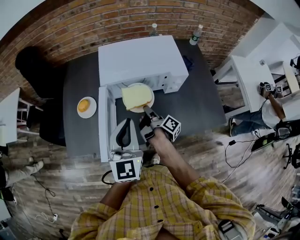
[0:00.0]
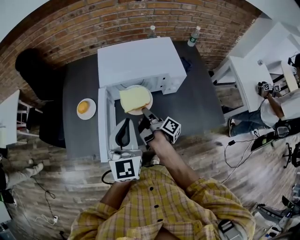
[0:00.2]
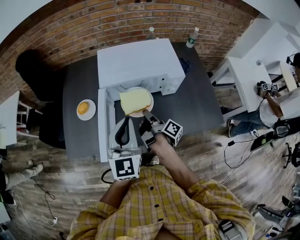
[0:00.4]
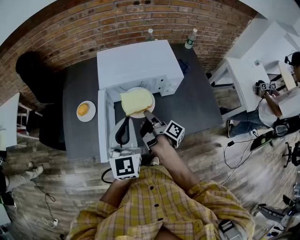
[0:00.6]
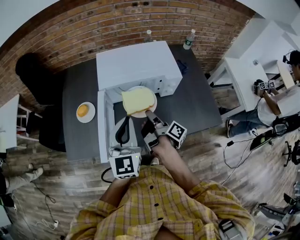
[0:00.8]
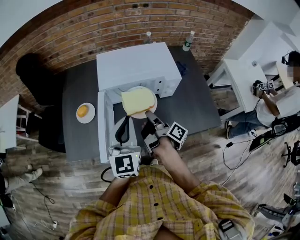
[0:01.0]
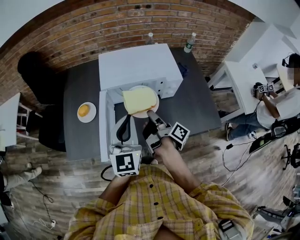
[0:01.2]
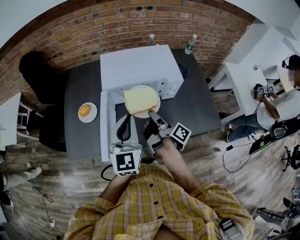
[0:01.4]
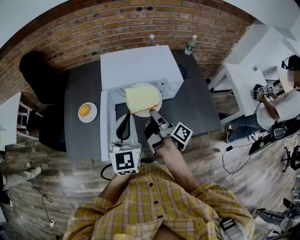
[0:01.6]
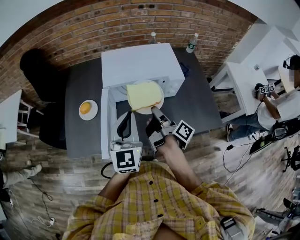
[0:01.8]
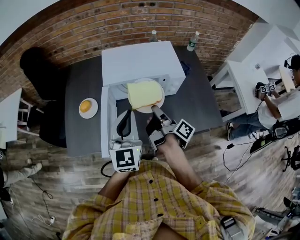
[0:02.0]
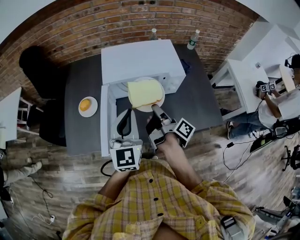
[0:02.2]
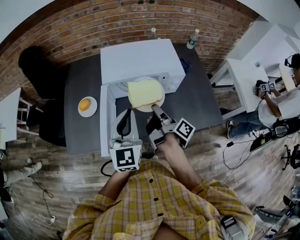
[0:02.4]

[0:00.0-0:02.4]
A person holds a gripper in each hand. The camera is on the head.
0.0 to 1.2 s: The right gripper heads upward, covering about 10 cm.
1.2 to 2.4 s: The grippers make only small movements.

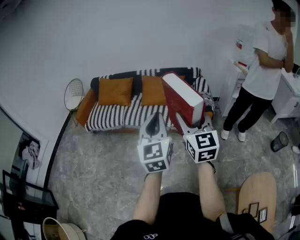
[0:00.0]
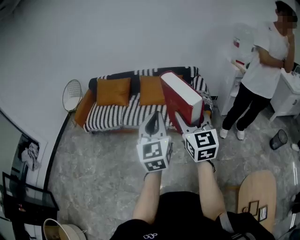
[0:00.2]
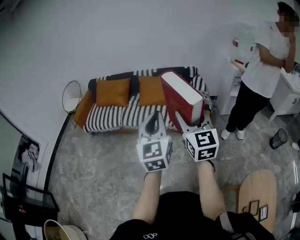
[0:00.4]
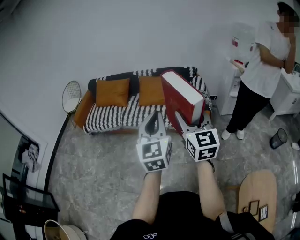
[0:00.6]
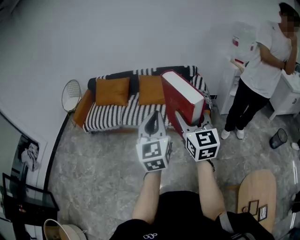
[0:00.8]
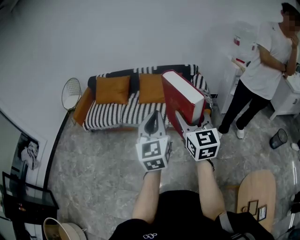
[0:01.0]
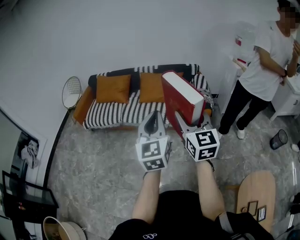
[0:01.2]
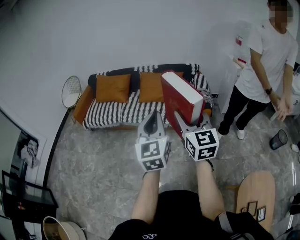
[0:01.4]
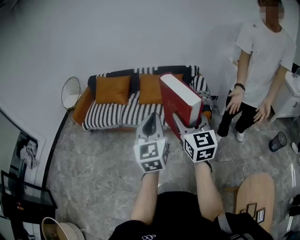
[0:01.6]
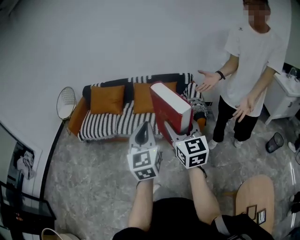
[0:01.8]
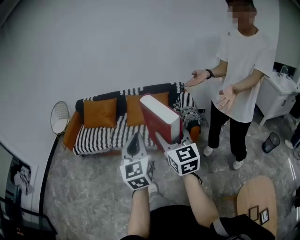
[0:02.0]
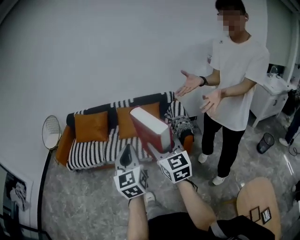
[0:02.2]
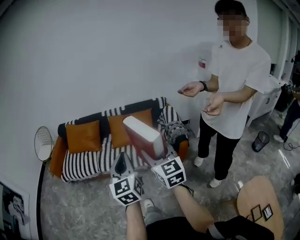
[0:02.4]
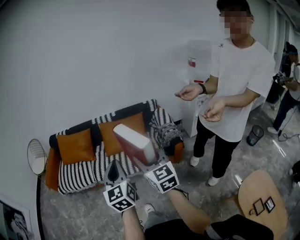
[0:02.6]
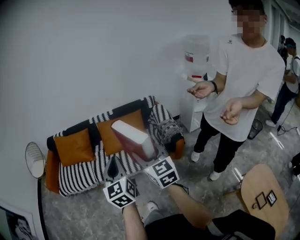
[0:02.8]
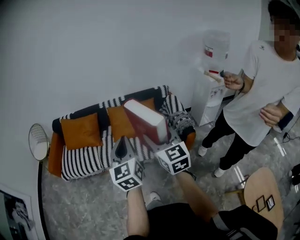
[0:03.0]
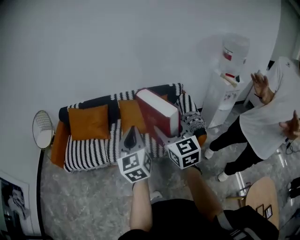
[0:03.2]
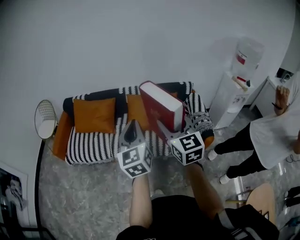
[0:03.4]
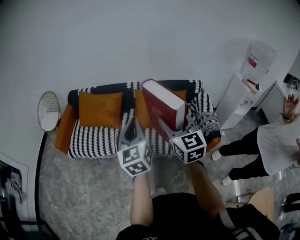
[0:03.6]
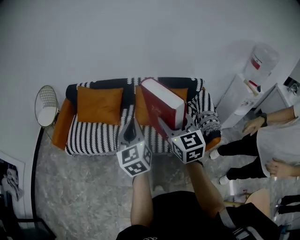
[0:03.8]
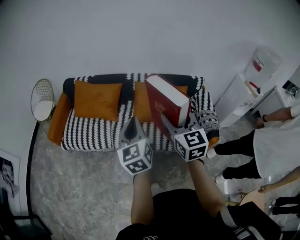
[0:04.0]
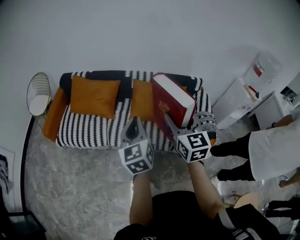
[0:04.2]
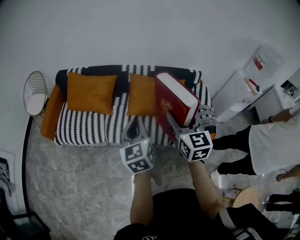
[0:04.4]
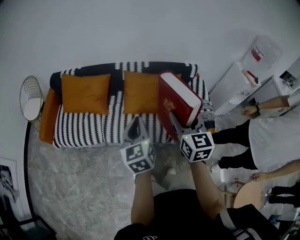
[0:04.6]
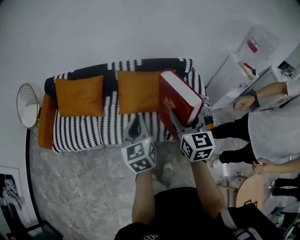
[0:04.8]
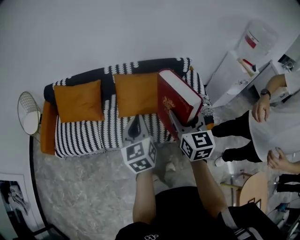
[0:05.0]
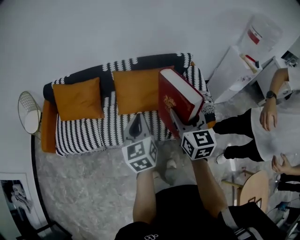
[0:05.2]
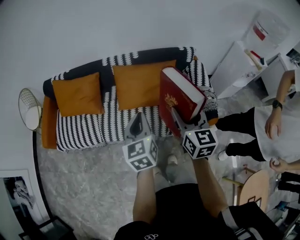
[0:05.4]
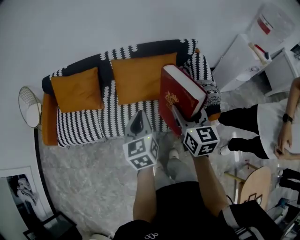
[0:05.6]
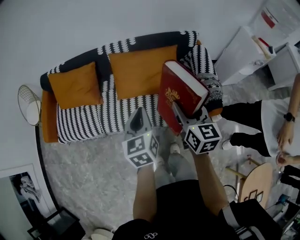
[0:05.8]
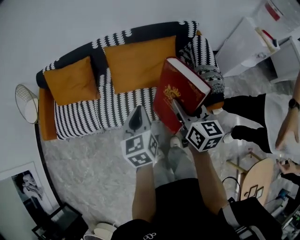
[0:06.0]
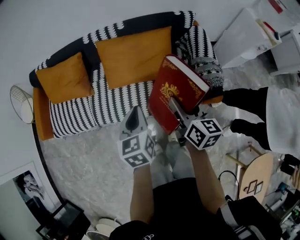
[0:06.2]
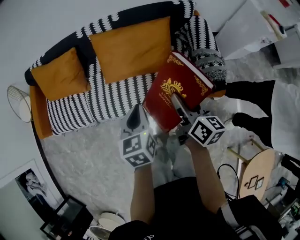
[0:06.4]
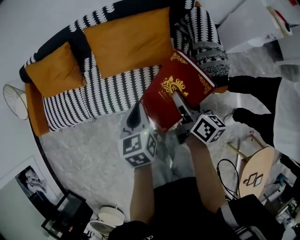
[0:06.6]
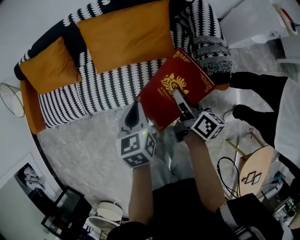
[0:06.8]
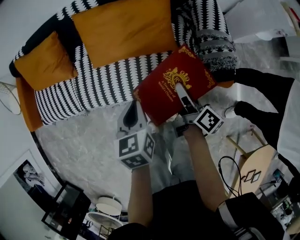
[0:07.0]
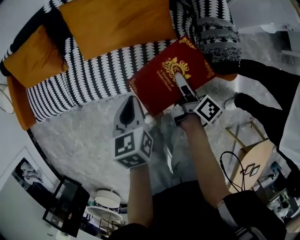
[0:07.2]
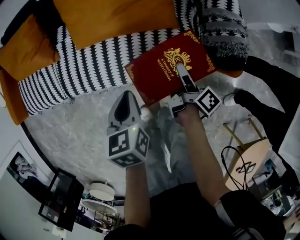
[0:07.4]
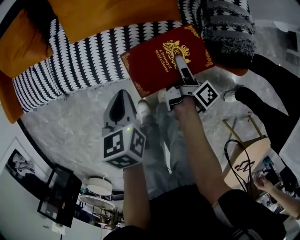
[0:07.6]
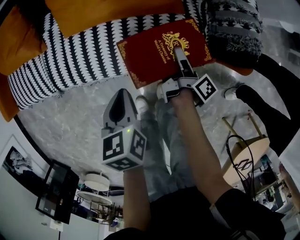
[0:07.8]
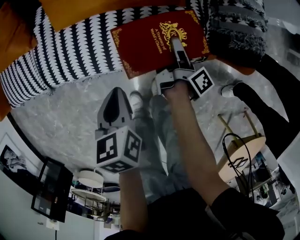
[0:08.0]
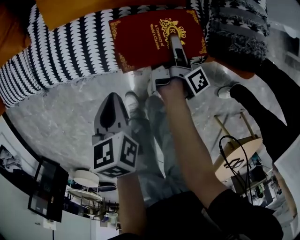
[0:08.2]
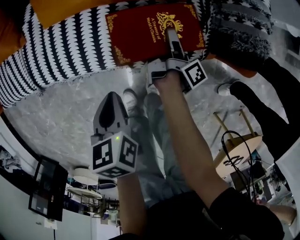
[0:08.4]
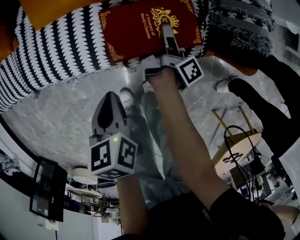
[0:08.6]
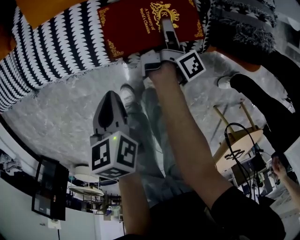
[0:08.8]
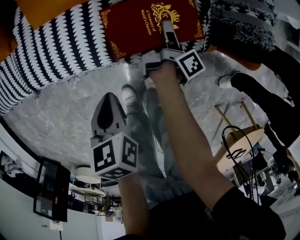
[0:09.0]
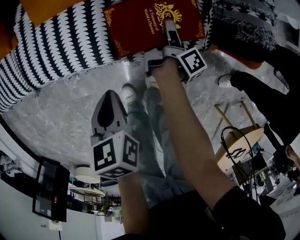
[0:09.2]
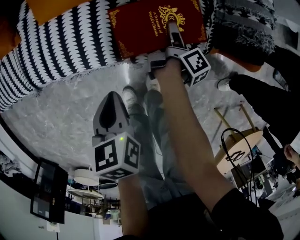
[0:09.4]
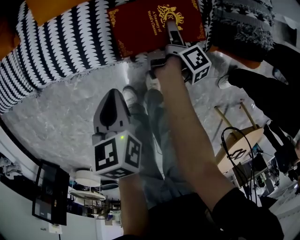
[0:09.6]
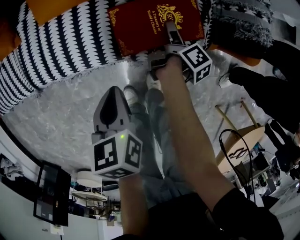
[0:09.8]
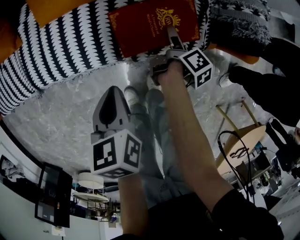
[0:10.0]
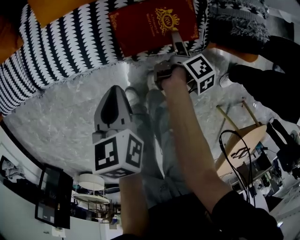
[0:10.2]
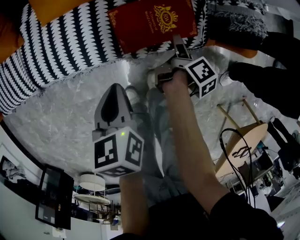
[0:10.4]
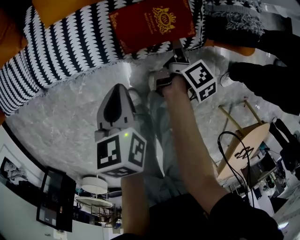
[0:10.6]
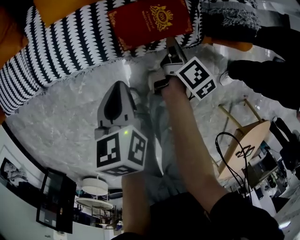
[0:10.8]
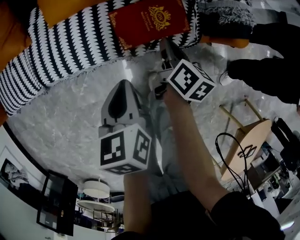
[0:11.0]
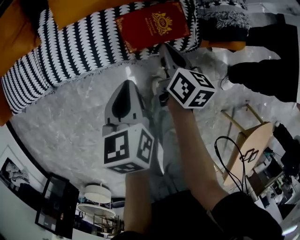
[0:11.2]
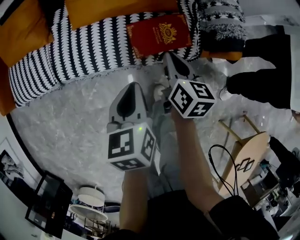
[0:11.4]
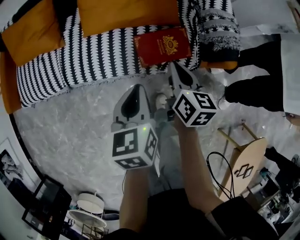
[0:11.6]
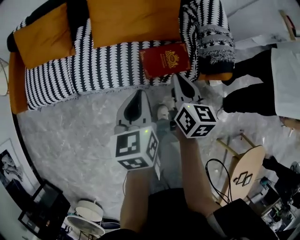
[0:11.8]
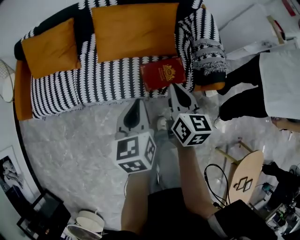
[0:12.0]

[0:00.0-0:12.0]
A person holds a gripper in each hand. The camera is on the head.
0.0 to 1.6 s: The grippers stay close to where they were, moving slightly.
1.6 to 3.0 s: The two grippers go approximately 25 cm forward.
3.0 to 4.4 s: The left gripper shifts approximately 25 cm forward, to the left and downward, while the right gripper moves forward and to the left, about 20 cm.
4.4 to 6.0 s: Both grippers move to the right, downward and forward, some 25 cm. The right gripper rotates about 30 degrees, while the left gripper changes its angle by about 20 degrees.
6.0 to 7.6 s: The two grippers go approximately 35 cm downward. The right gripper twists roughly 70 degrees clockwise, seen from behind. Meanwhile the left gripper swivels approximately 20 degrees.
7.6 to 9.0 s: The right gripper travels downward by about 10 cm. The left gripper is displaced downward and backward by some 10 cm.
9.0 to 10.4 s: The right gripper shifts approximately 5 cm backward, and turns by about 20 degrees.
10.4 to 12.0 s: The left gripper travels upward by approximately 25 cm, and turns by some 20 degrees. Meanwhile the right gripper heads upward, covering some 35 cm, rolls counterclockwise, seen from behind, by roughly 60 degrees, and closes.

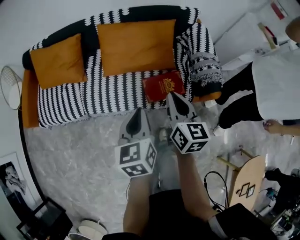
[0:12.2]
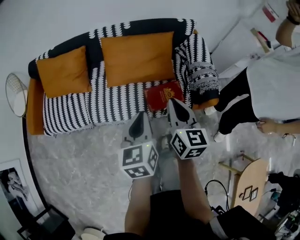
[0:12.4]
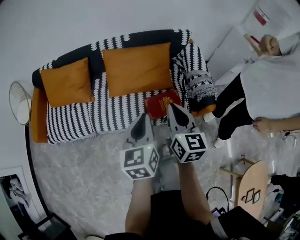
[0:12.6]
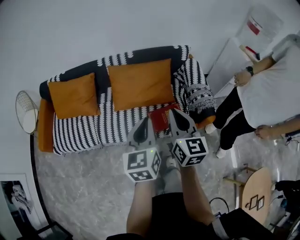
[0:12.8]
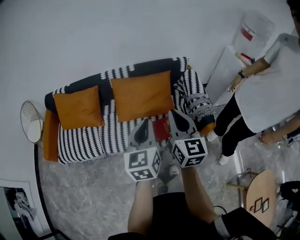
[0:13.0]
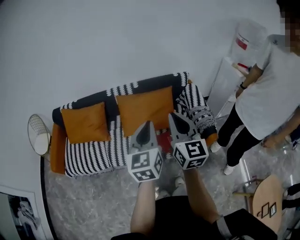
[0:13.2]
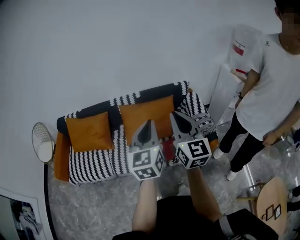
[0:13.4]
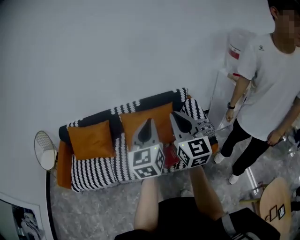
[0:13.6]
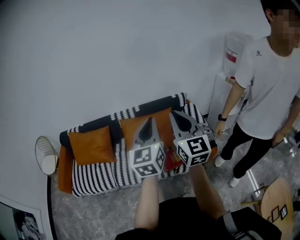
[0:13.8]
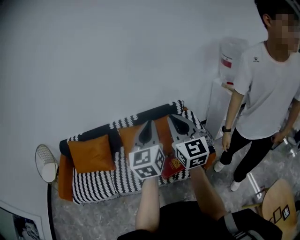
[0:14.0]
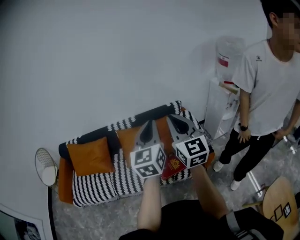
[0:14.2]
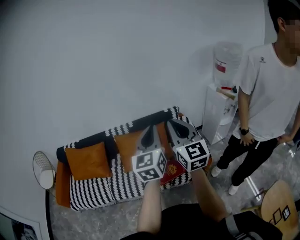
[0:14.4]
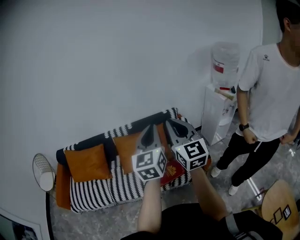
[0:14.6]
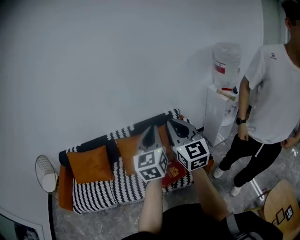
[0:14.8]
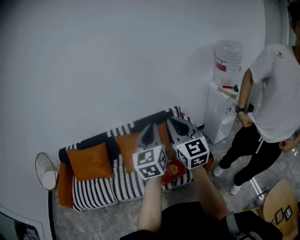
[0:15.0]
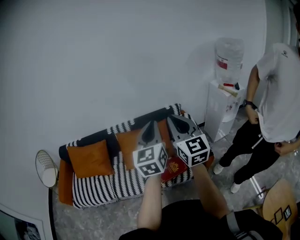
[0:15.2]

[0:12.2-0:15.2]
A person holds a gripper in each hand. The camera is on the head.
12.2 to 13.8 s: Both grippers move upward, some 35 cm. The right gripper turns by about 40 degrees, while the left gripper points its fingers roughly 30 degrees further upward.
13.8 to 15.2 s: Both grippers move to the right, roughly 5 cm.

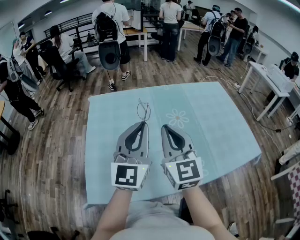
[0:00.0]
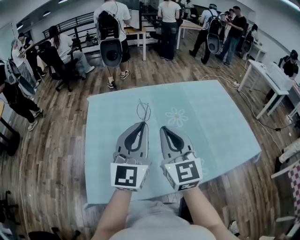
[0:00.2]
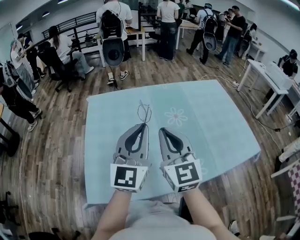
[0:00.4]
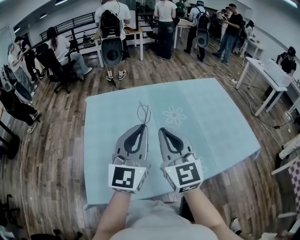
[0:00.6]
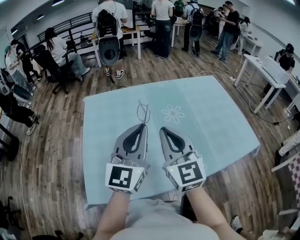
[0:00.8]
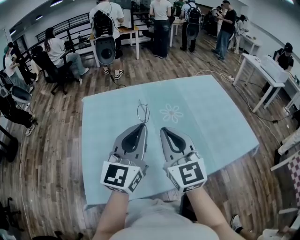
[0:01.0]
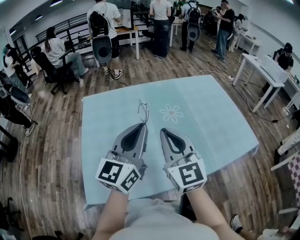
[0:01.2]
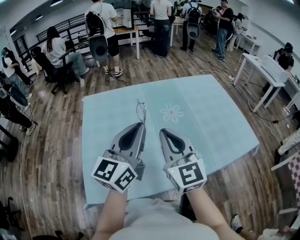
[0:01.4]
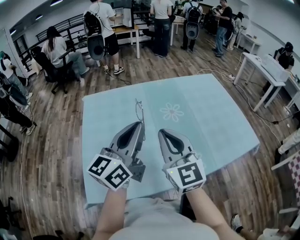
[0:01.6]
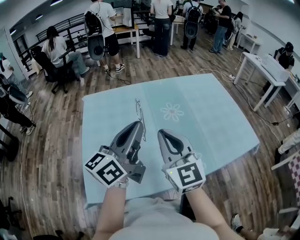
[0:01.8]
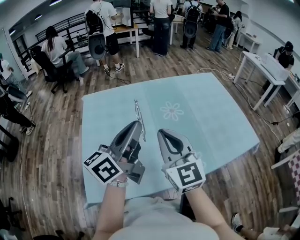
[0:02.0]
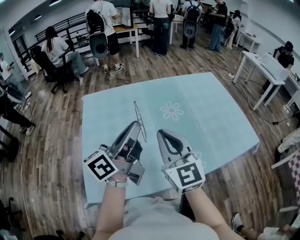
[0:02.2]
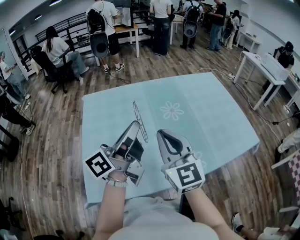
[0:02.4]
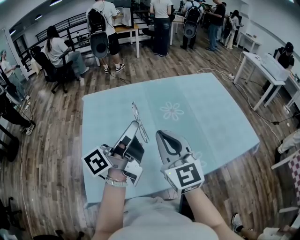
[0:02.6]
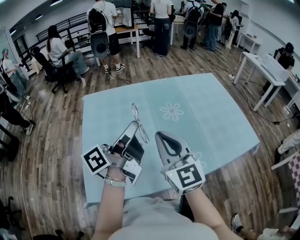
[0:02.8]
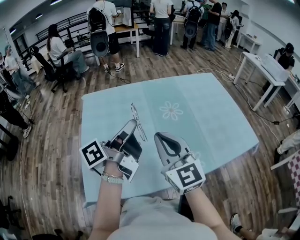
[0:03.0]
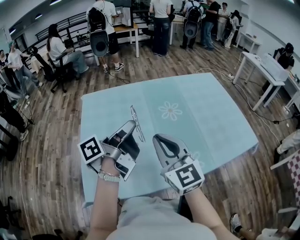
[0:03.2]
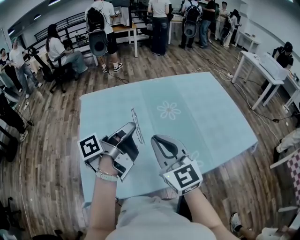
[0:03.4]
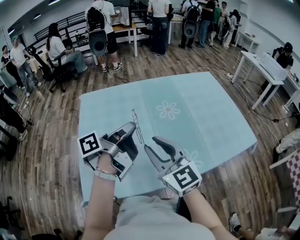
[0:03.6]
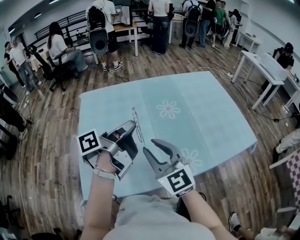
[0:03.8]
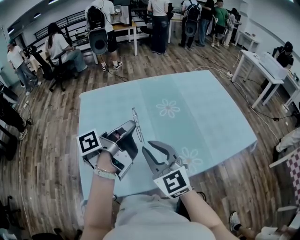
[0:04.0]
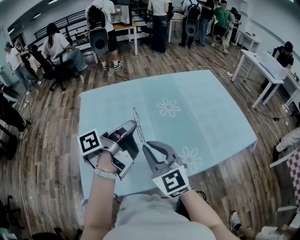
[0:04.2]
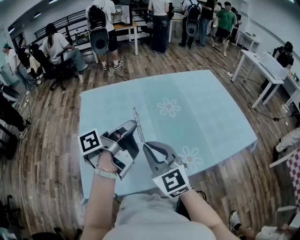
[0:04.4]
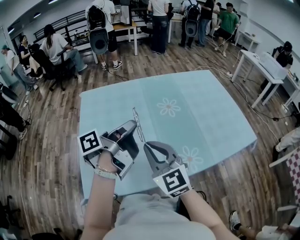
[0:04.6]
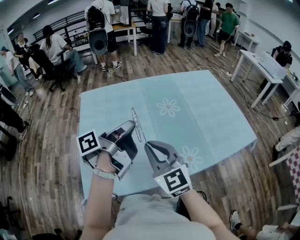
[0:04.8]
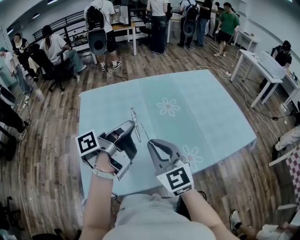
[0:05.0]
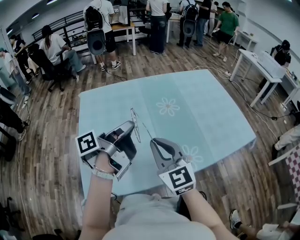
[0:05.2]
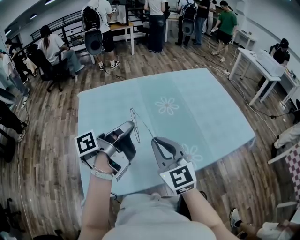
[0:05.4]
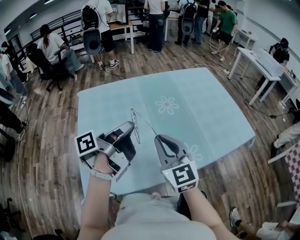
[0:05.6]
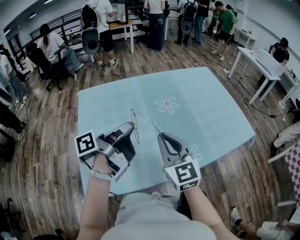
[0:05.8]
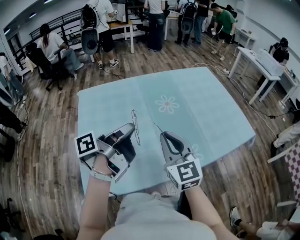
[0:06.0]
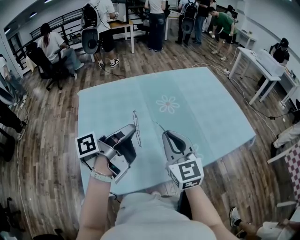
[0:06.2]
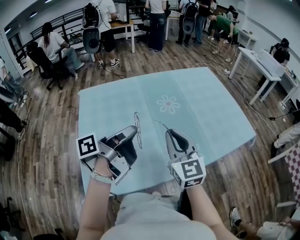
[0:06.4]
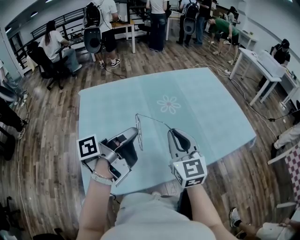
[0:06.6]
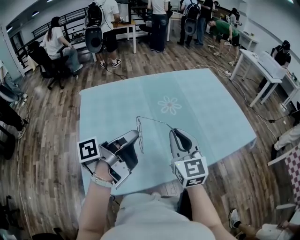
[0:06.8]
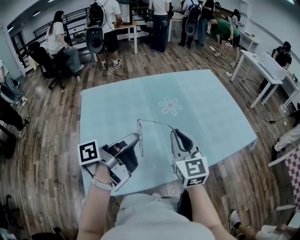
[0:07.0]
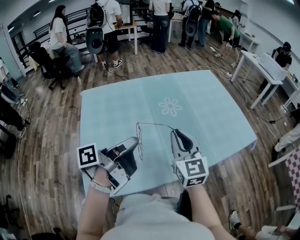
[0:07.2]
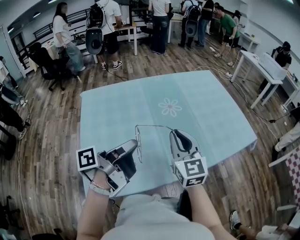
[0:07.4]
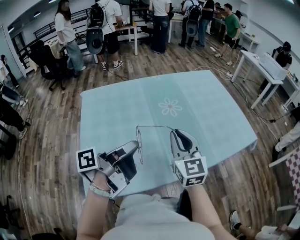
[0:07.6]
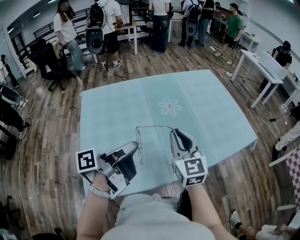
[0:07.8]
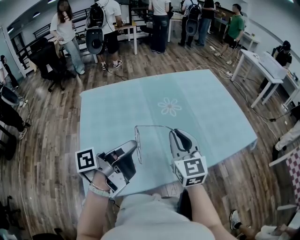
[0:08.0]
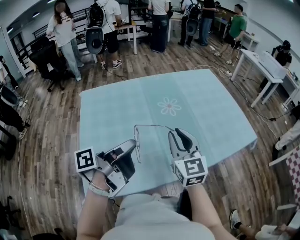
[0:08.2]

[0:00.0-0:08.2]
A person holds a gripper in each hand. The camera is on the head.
3.2 to 5.0 s: The right gripper opens, then closes again.
5.0 to 6.6 s: The right gripper ends up roughly 10 cm from where it was.
